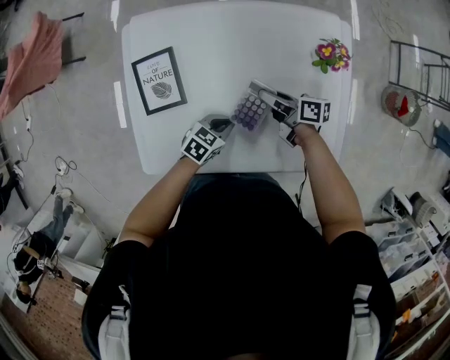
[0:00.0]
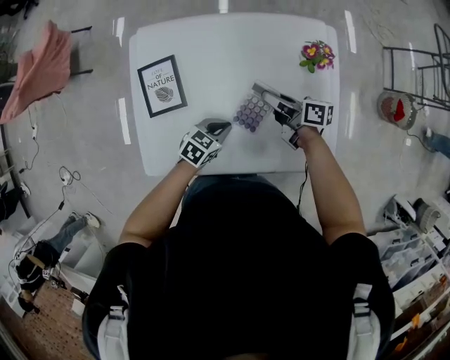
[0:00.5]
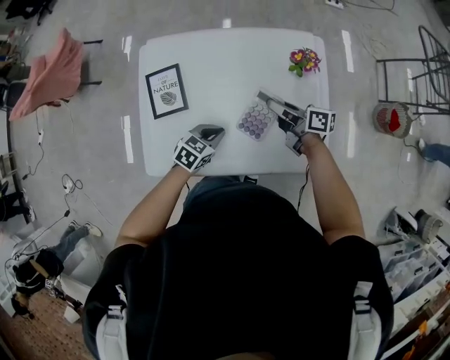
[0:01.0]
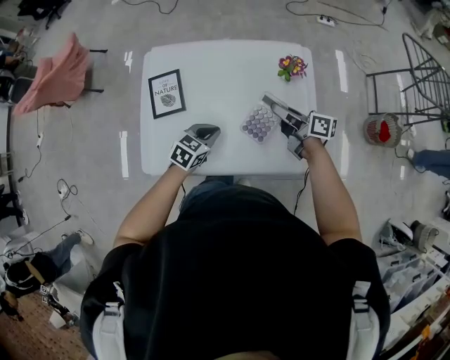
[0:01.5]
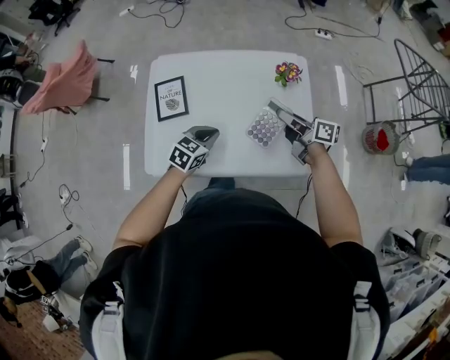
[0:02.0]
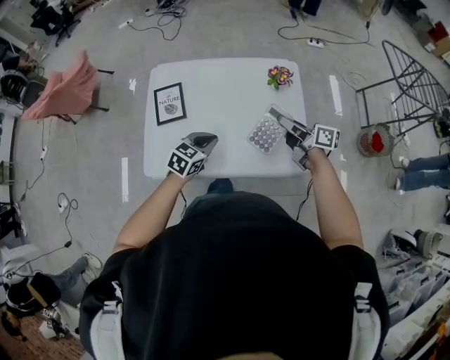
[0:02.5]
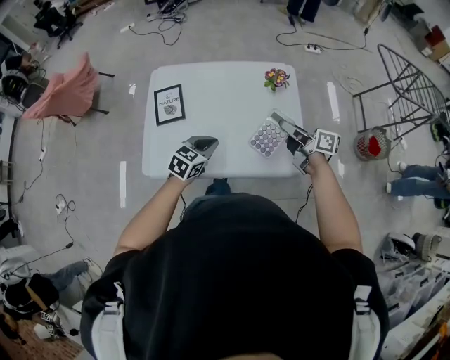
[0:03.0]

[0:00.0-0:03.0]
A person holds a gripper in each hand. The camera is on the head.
0:00.0 to 0:01.5: Both grippers move upward, approximately 15 cm.
0:01.5 to 0:03.0: The left gripper travels backward and upward by about 10 cm. Meanwhile the right gripper goes approximately 15 cm backward, upward and to the right.

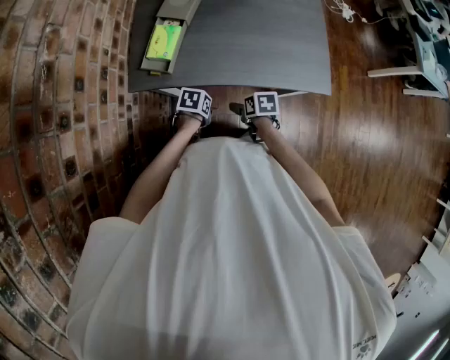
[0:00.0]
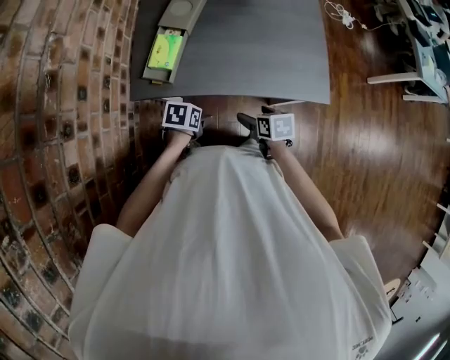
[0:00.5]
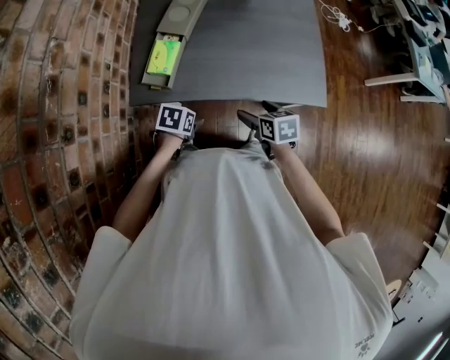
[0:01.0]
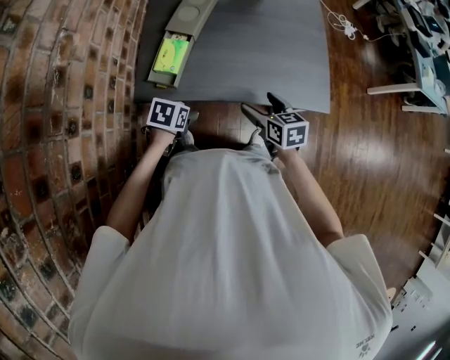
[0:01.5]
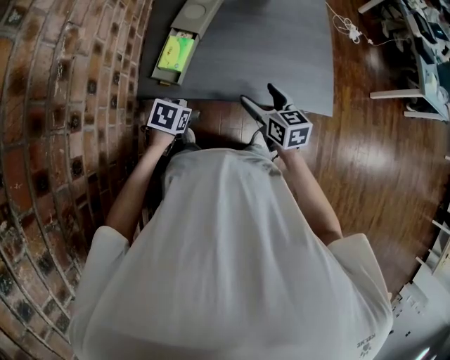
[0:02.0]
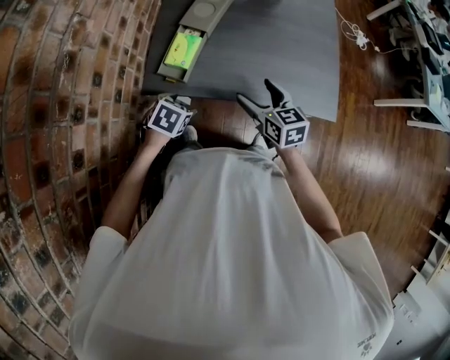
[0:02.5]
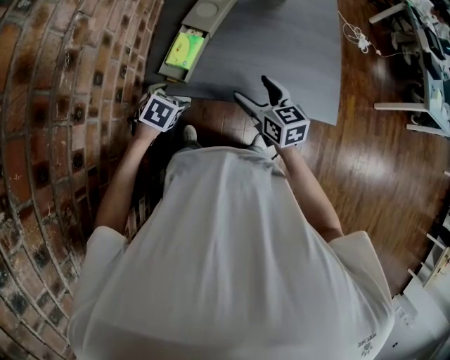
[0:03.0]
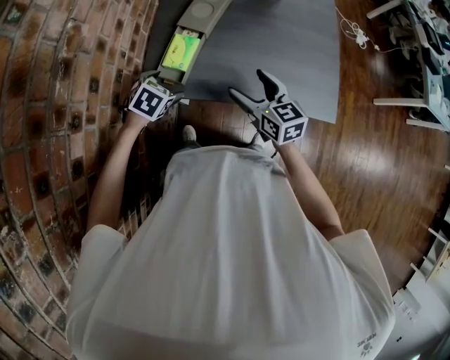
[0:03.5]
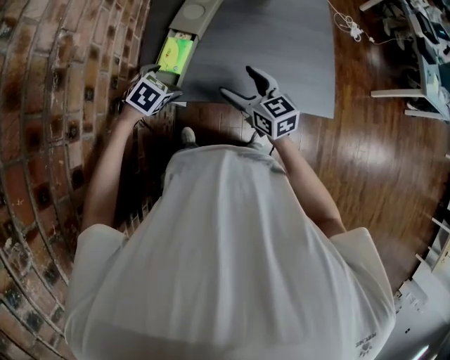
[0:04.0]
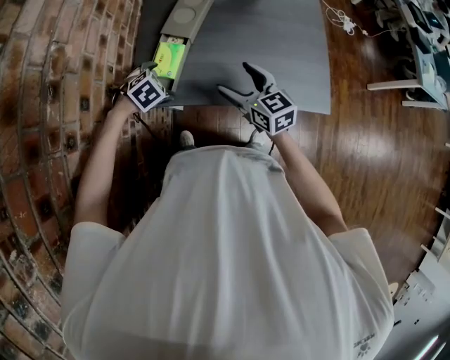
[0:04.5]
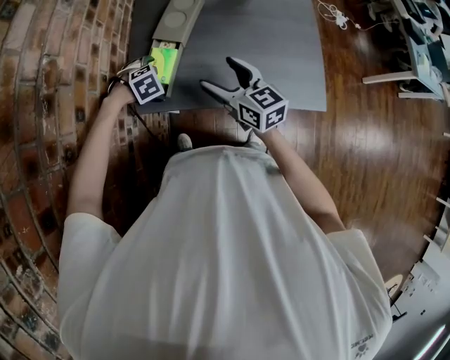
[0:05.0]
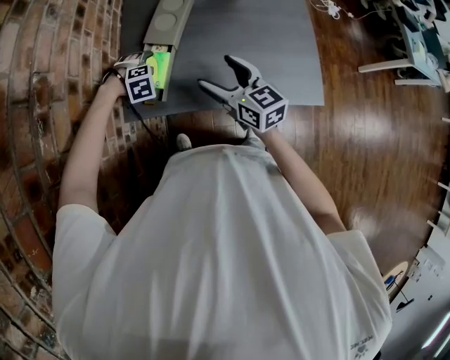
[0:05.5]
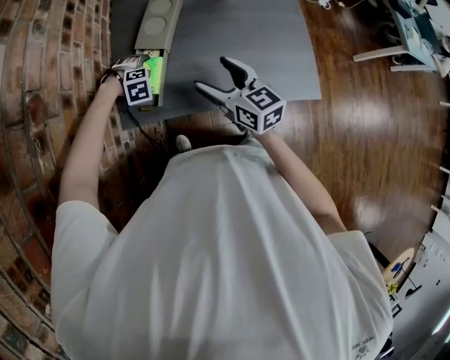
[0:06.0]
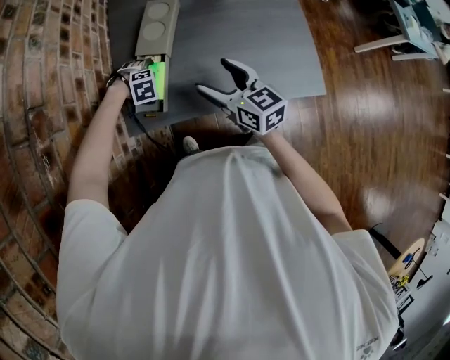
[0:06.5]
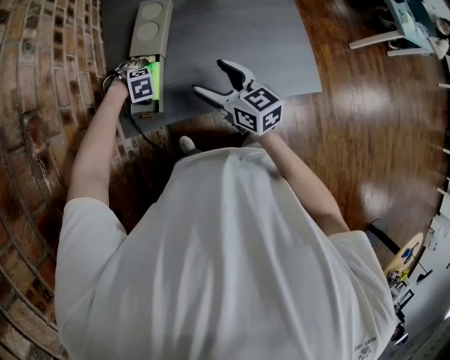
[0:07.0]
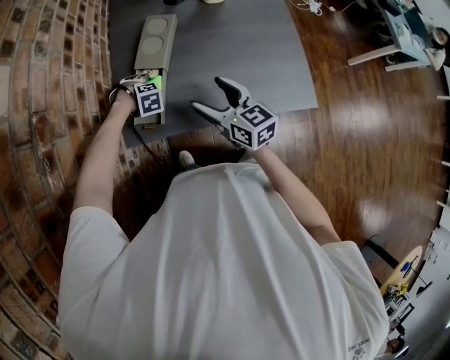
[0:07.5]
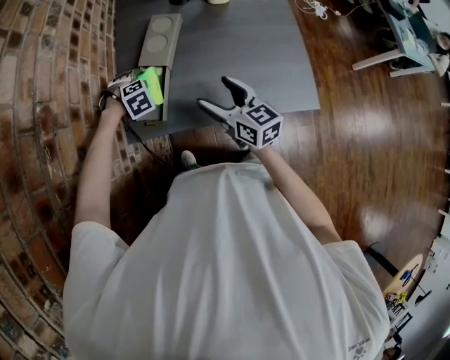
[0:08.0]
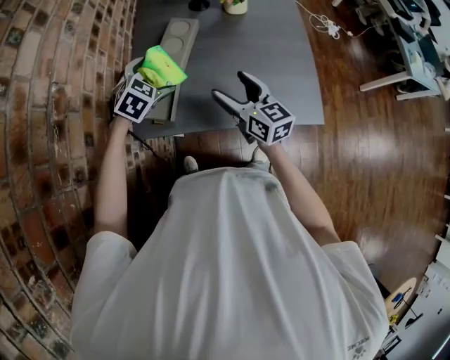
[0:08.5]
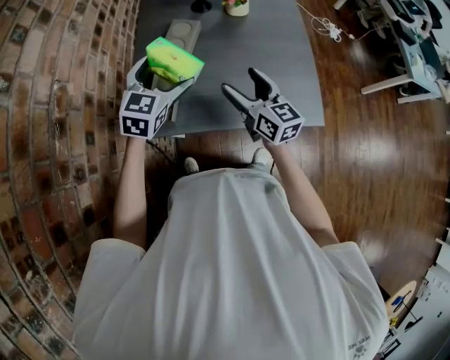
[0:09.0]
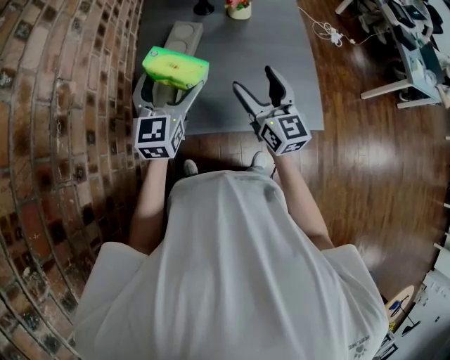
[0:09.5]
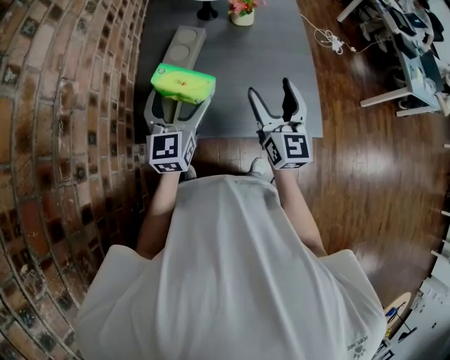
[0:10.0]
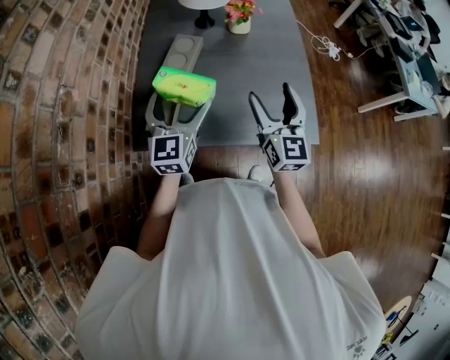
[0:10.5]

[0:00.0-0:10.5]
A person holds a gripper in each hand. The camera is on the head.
0:00.0 to 0:02.0: The left gripper goes approximately 15 cm upward. Meanwhile the right gripper moves upward, about 20 cm, and points its fingers about 30 degrees further upward.
0:02.0 to 0:04.0: The right gripper is displaced to the left by approximately 5 cm; the left gripper travels forward by about 10 cm, and swivels approximately 30 degrees.
0:04.0 to 0:06.5: The left gripper shifts about 10 cm downward, and rolls clockwise, seen from behind, by some 50 degrees. The right gripper changes place by roughly 5 cm.
0:06.5 to 0:08.5: The left gripper shifts about 20 cm upward, and tilts its fingers about 40 degrees upward.
0:08.5 to 0:10.5: The left gripper goes some 15 cm upward, to the right and backward, and angles its fingers upward, by approximately 40 degrees. Meanwhile the right gripper heads to the right and upward, covering approximately 15 cm, and swivels some 30 degrees.

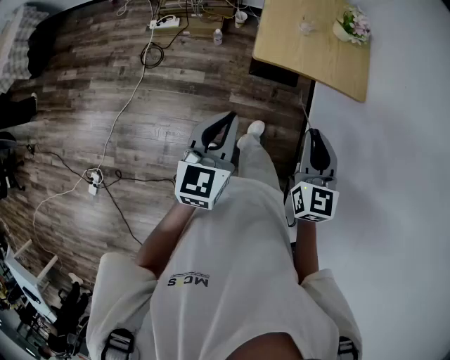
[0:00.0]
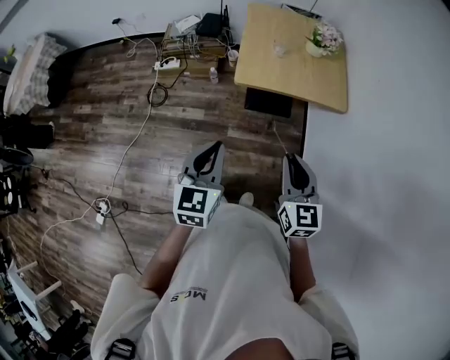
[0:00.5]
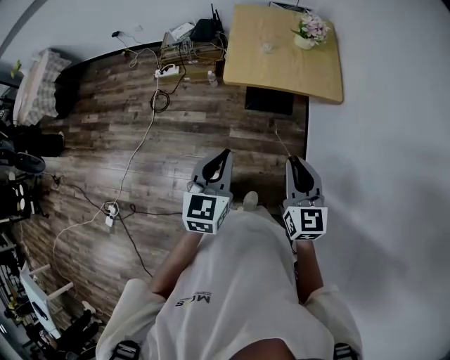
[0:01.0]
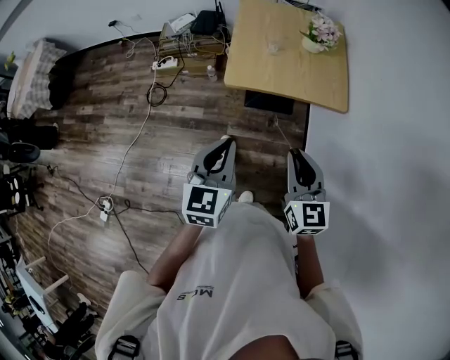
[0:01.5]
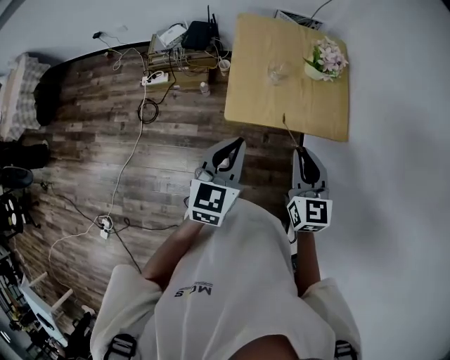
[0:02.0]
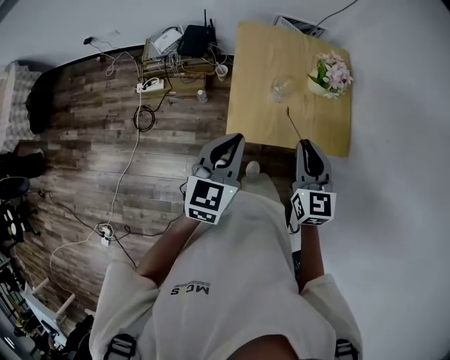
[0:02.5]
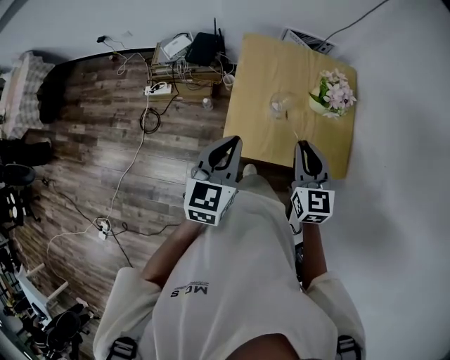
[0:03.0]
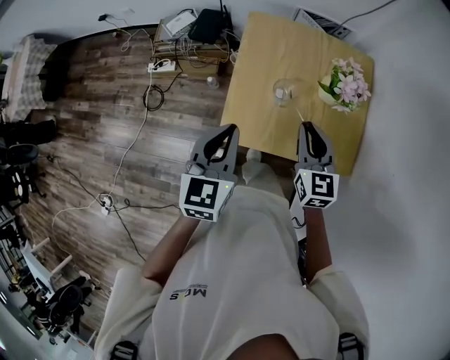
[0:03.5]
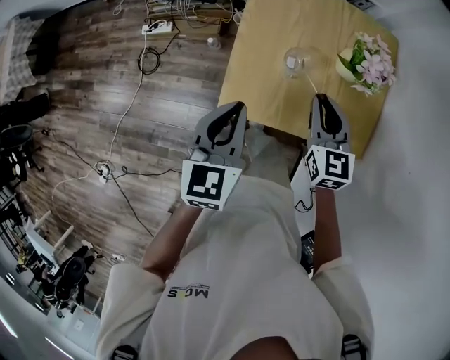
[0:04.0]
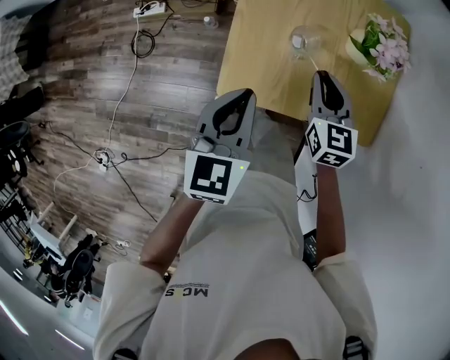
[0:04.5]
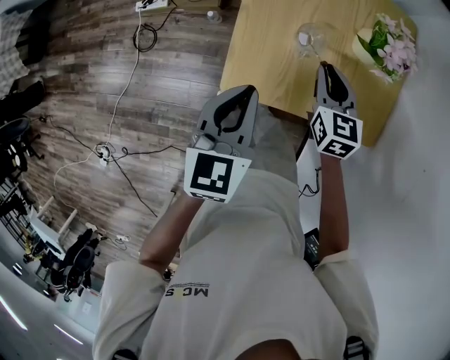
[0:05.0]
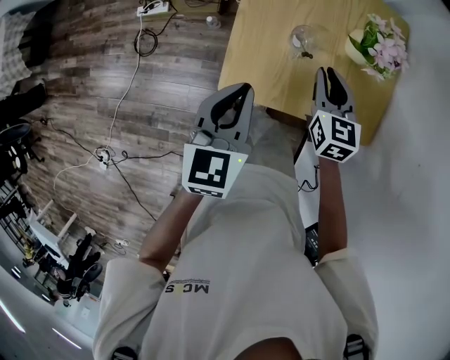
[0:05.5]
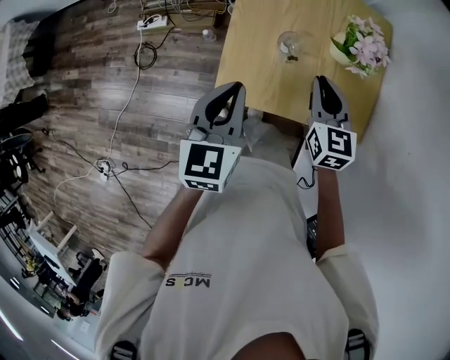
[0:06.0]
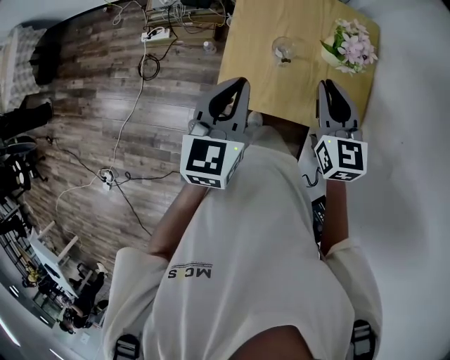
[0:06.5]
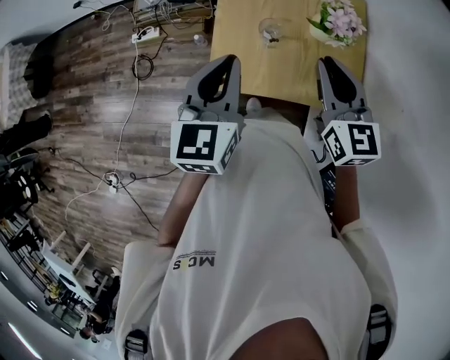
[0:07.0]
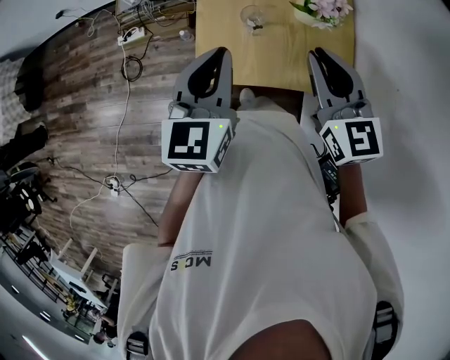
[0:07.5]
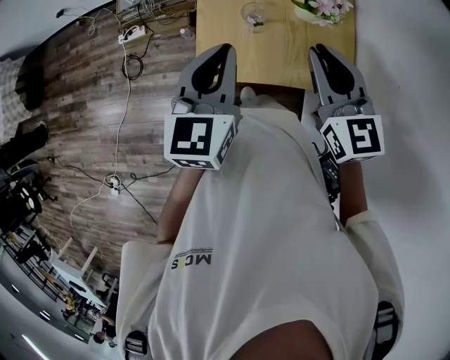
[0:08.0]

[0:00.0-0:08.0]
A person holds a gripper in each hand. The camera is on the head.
0:00.0 to 0:02.0: The grippers both shift forward and to the right by some 20 cm.
0:02.0 to 0:04.0: Both grippers move forward and downward, about 25 cm.
0:04.0 to 0:06.0: The right gripper travels downward and back again, roughly 10 cm each way.
0:06.0 to 0:08.0: The left gripper shifts about 10 cm upward and to the right. The right gripper is displaced upward and backward by approximately 15 cm.

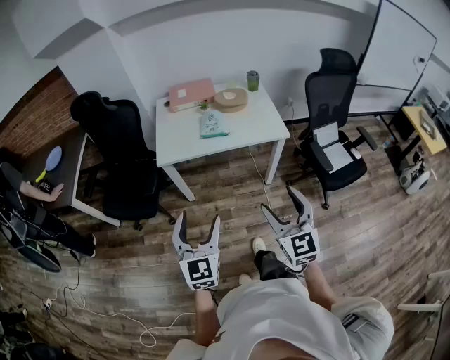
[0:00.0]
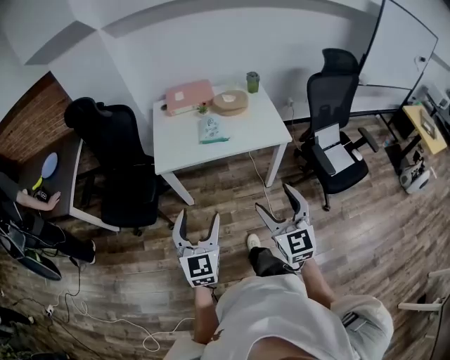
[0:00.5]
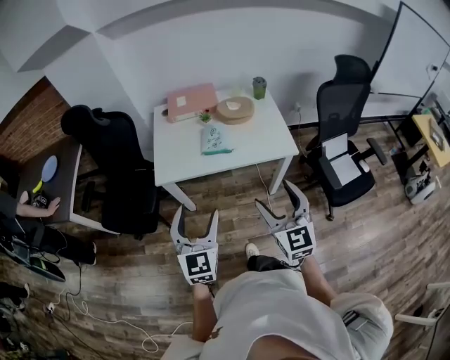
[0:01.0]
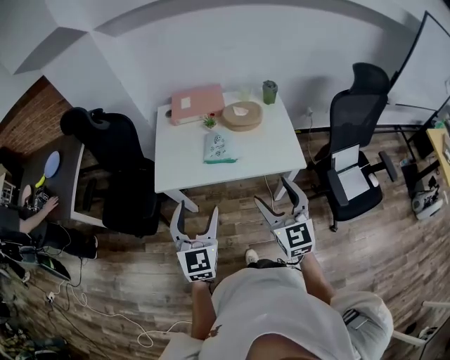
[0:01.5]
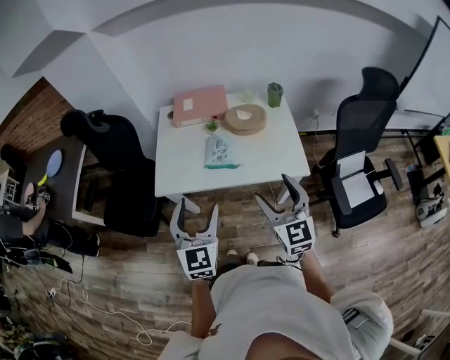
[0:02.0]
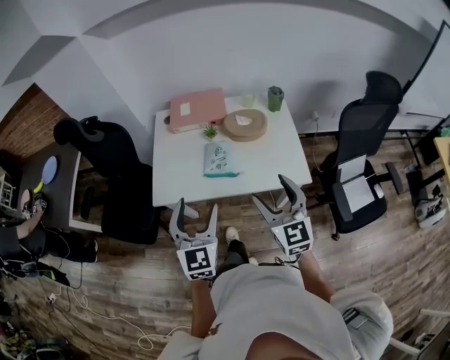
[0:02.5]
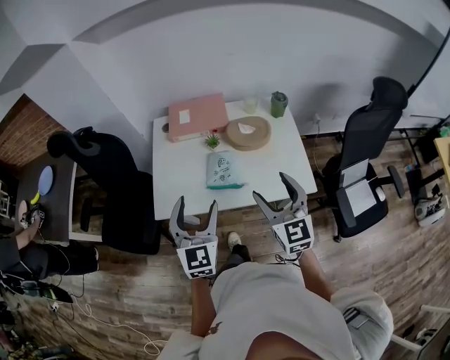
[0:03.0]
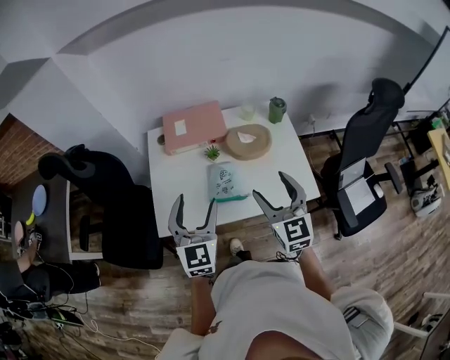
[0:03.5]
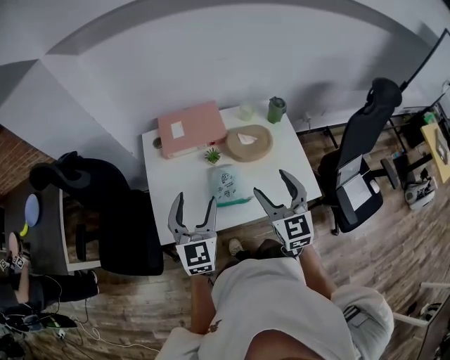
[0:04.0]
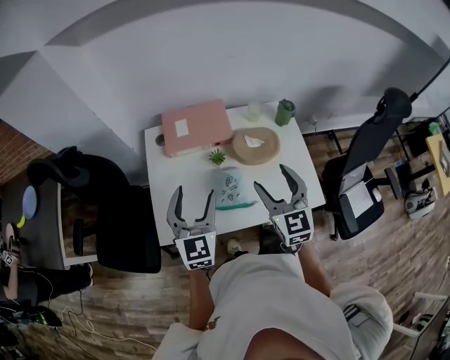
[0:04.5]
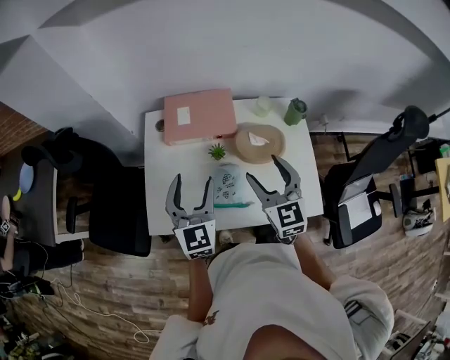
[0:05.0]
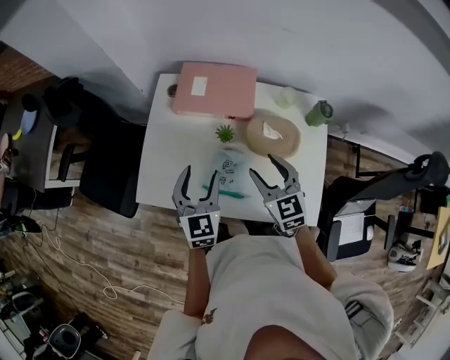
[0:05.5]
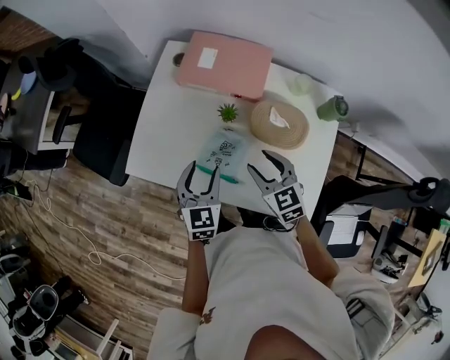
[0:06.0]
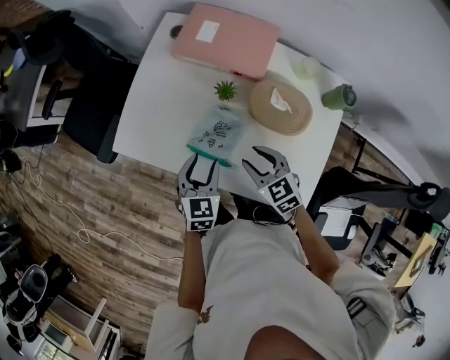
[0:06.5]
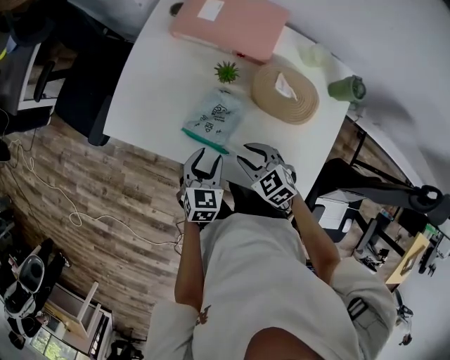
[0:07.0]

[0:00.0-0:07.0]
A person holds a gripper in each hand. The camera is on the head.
0:00.0 to 0:02.0: Both grippers travel together forward, some 30 cm.
0:02.0 to 0:03.5: The two grippers go some 20 cm forward.
0:03.5 to 0:05.0: The grippers both shift forward by approximately 15 cm.
0:05.0 to 0:07.0: Both grippers move downward, approximately 30 cm. The right gripper tilts its fingers approximately 30 degrees downward, and closes its fingers; the left gripper tilts its fingers approximately 30 degrees downward.
